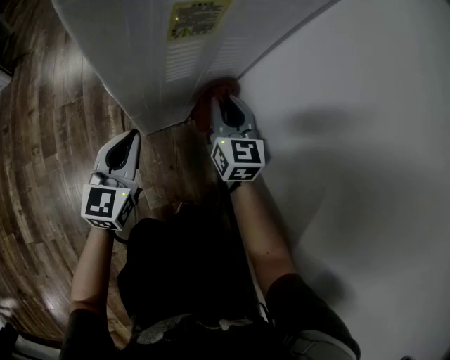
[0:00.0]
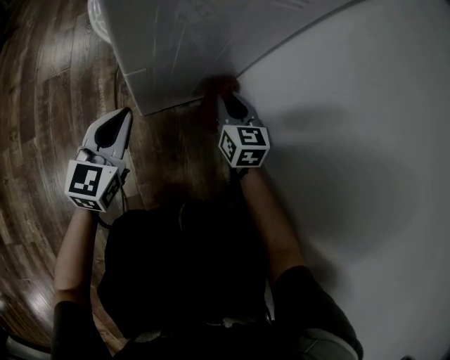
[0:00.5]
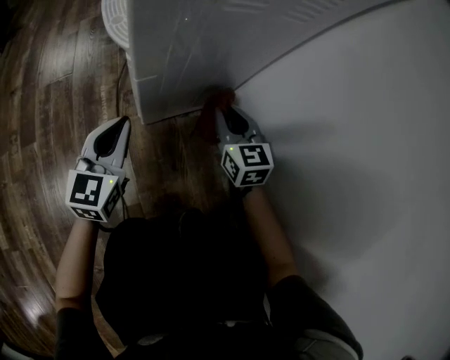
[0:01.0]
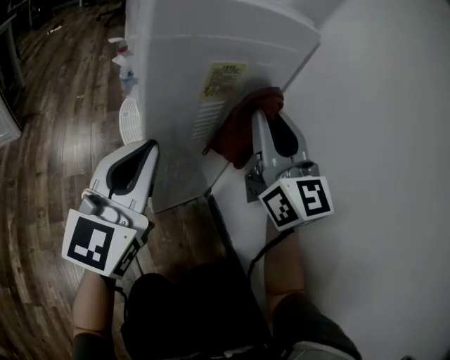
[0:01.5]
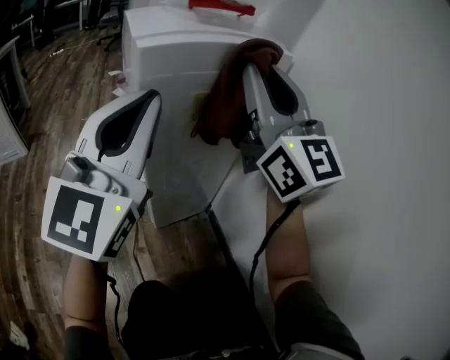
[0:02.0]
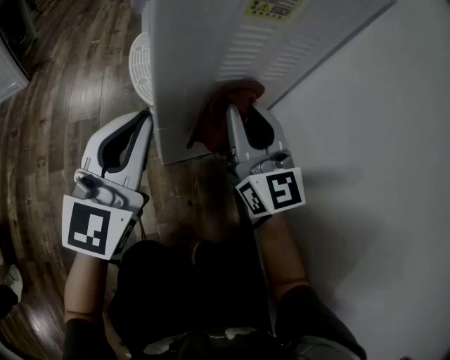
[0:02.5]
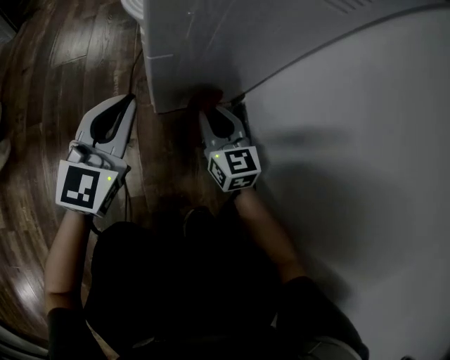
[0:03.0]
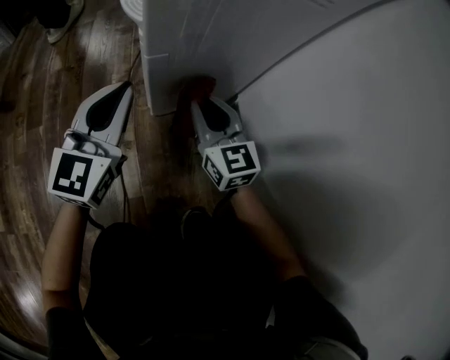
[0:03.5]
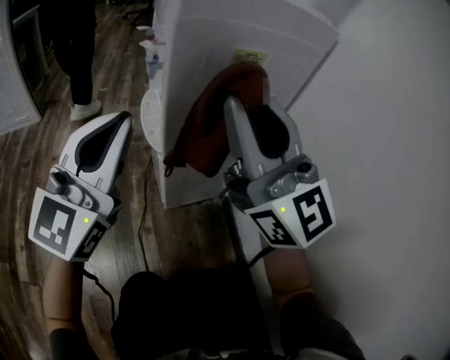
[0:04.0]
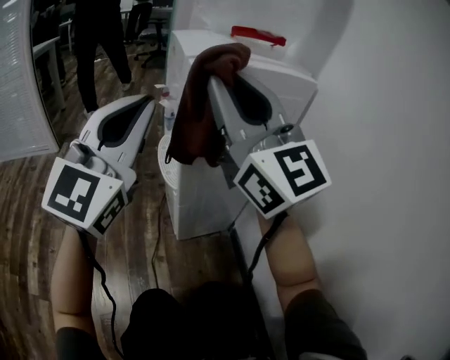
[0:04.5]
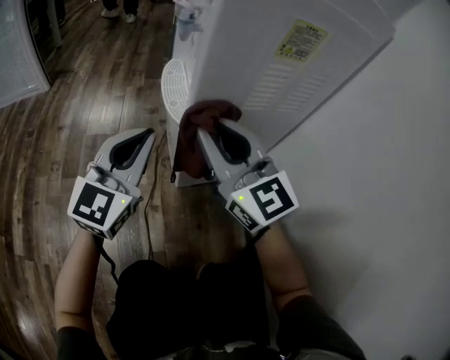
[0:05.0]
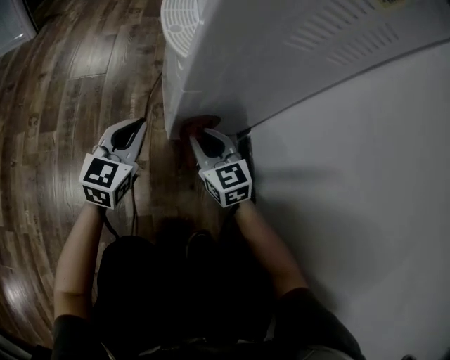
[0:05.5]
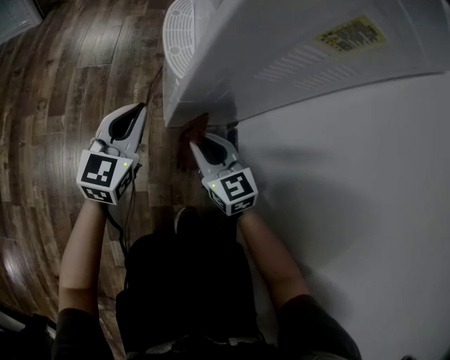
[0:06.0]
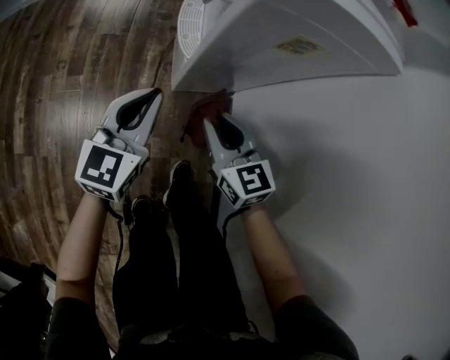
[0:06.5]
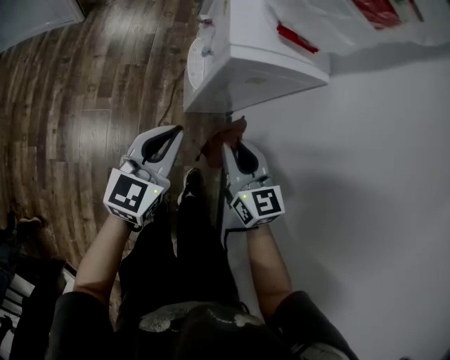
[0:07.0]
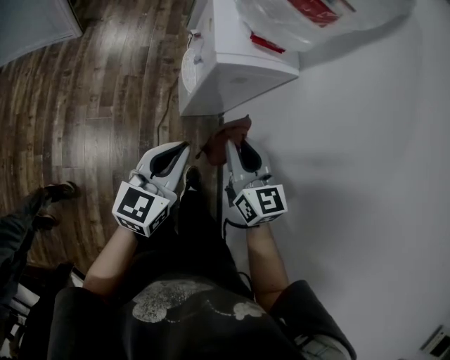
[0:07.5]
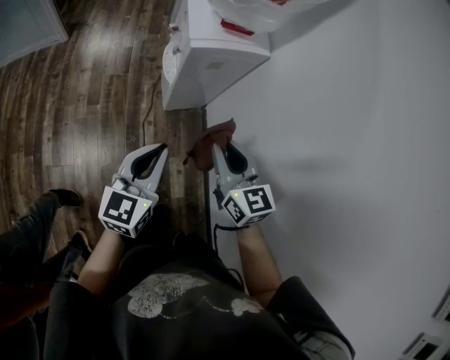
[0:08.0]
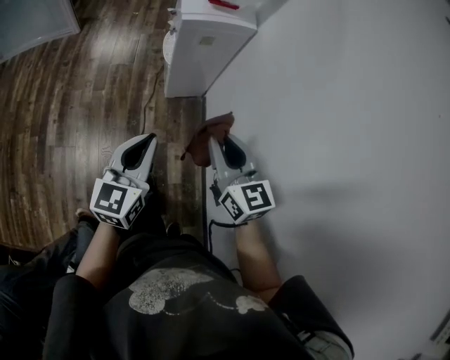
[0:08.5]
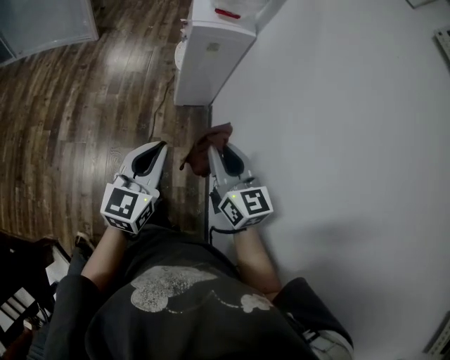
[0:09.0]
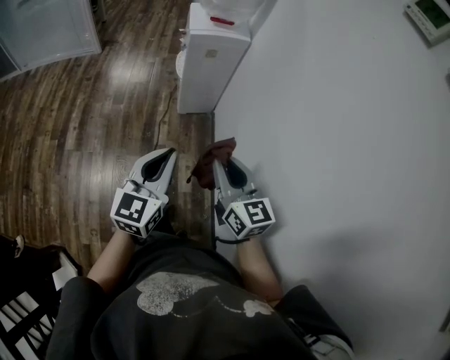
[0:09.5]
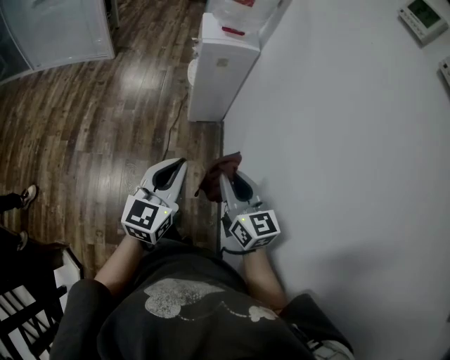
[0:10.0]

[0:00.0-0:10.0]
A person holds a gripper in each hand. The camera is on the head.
0:00.0 to 0:02.0: The two grippers go roughly 35 cm upward. The right gripper points its fingers some 40 degrees further upward. The left gripper tips its fingers upward by about 30 degrees.
0:02.0 to 0:04.0: The left gripper moves to the left, roughly 5 cm, and goes downward and returns, some 40 cm each way, while the right gripper is displaced backward and to the left by about 10 cm, and goes downward and returns, roughly 60 cm each way.
0:04.0 to 0:06.0: The right gripper goes up and down, about 60 cm each way, reversing 2 times, and angles its fingers downward, by roughly 50 degrees; the left gripper swings up and down, approximately 50 cm each way, with 2 reversals, and changes its angle by about 30 degrees.
0:06.0 to 0:08.0: The right gripper travels upward by roughly 50 cm; the left gripper goes roughly 50 cm upward and backward.
0:08.0 to 0:10.0: Both grippers move backward, about 30 cm.

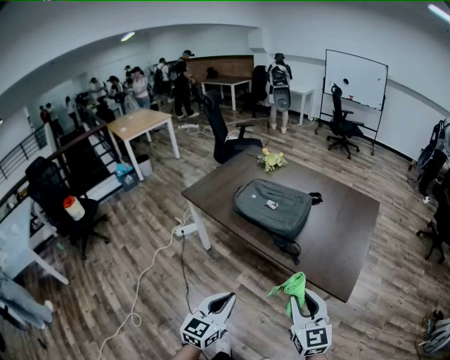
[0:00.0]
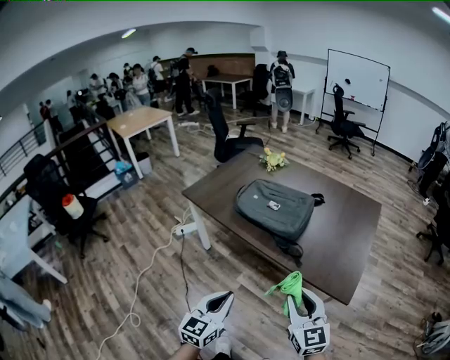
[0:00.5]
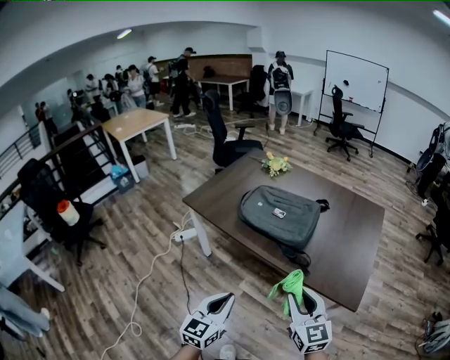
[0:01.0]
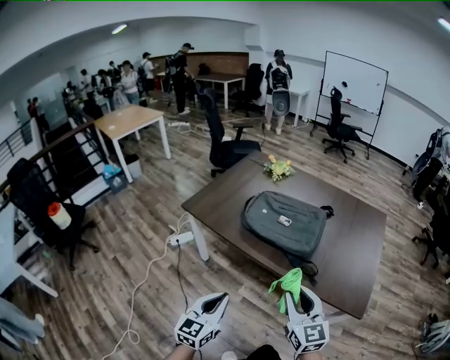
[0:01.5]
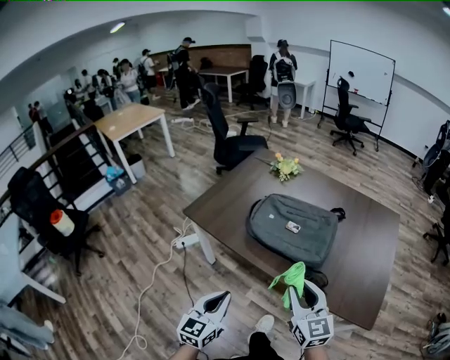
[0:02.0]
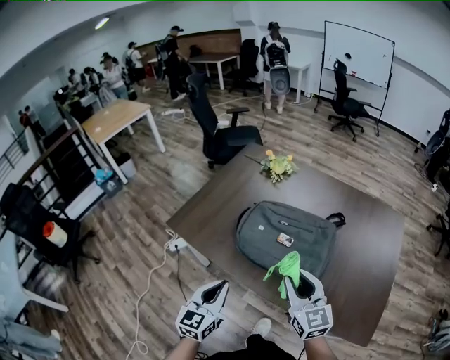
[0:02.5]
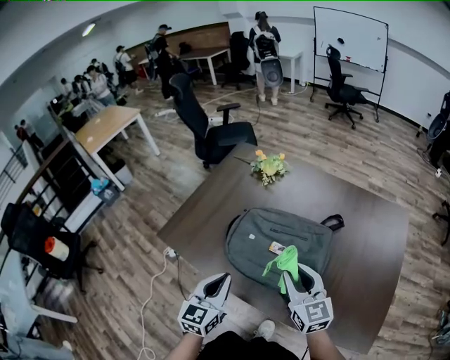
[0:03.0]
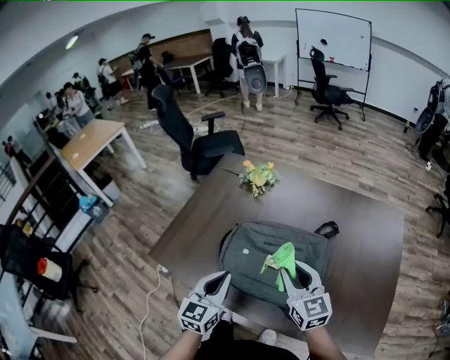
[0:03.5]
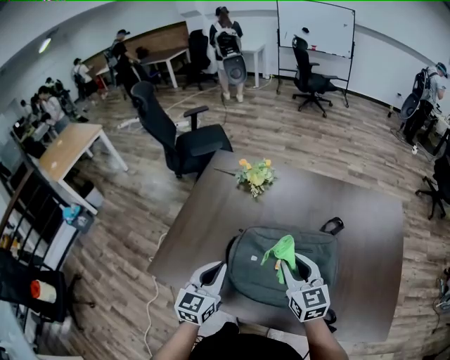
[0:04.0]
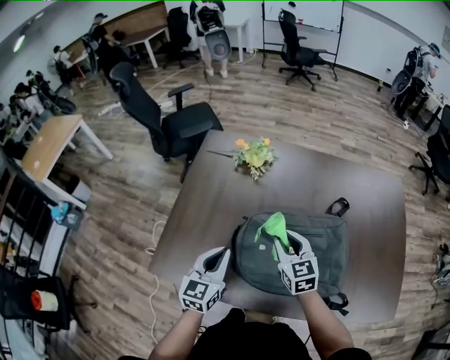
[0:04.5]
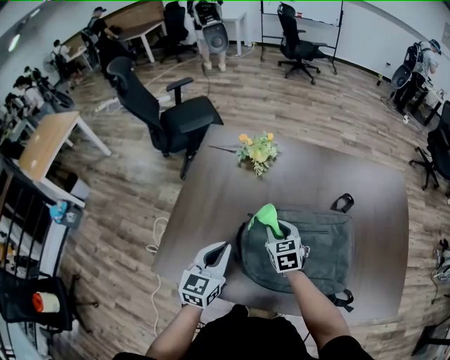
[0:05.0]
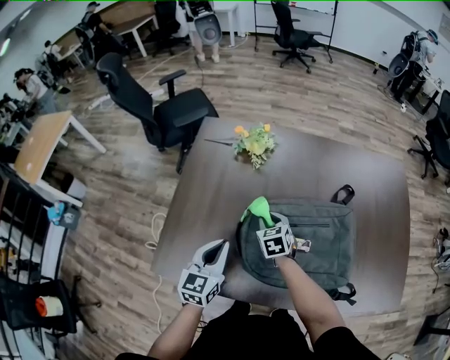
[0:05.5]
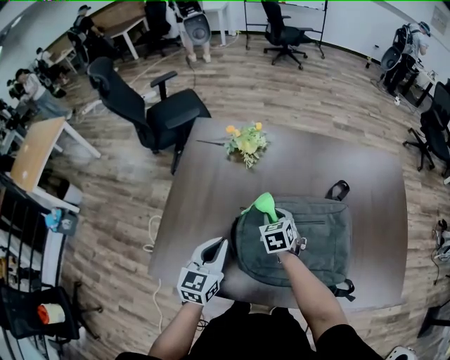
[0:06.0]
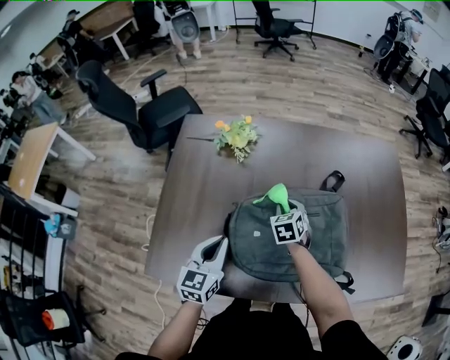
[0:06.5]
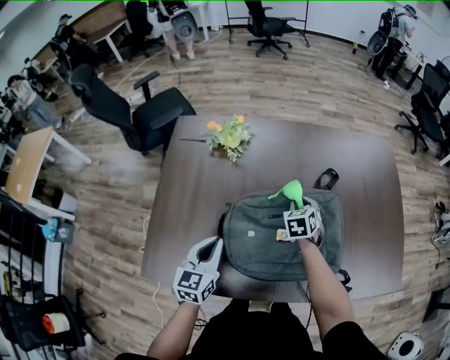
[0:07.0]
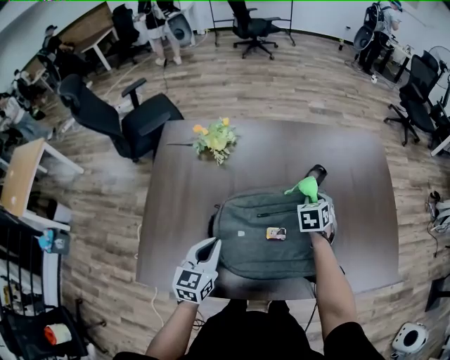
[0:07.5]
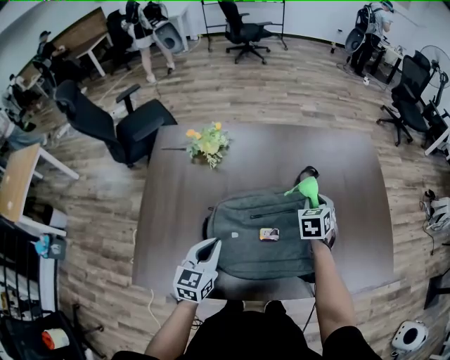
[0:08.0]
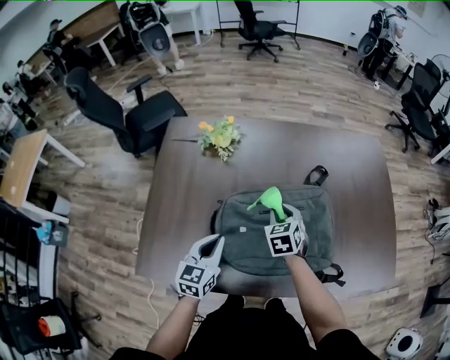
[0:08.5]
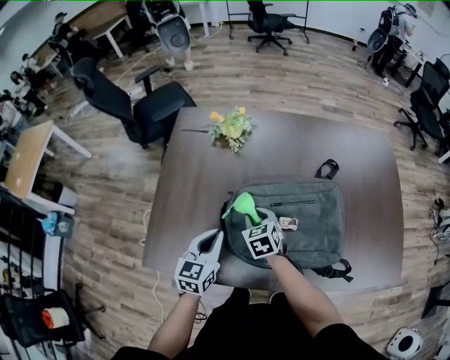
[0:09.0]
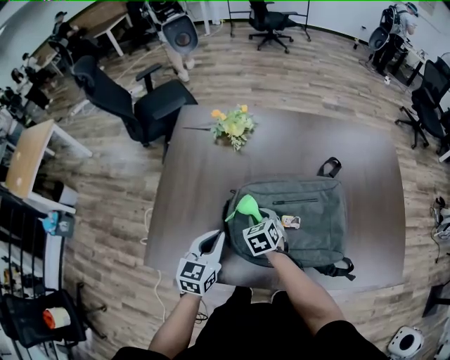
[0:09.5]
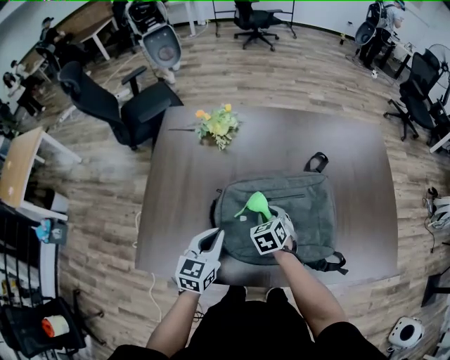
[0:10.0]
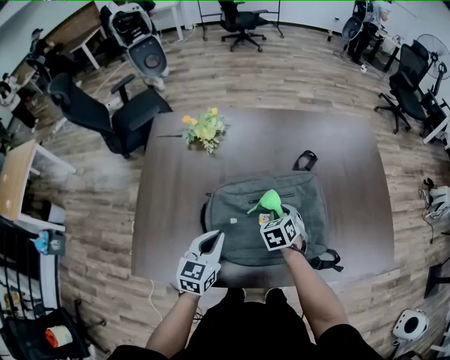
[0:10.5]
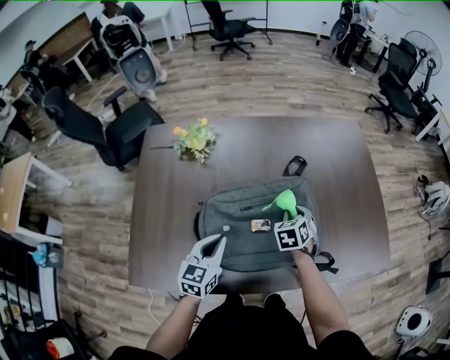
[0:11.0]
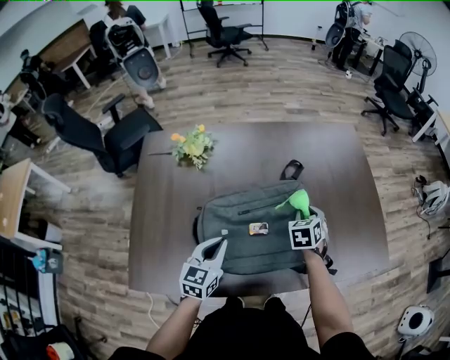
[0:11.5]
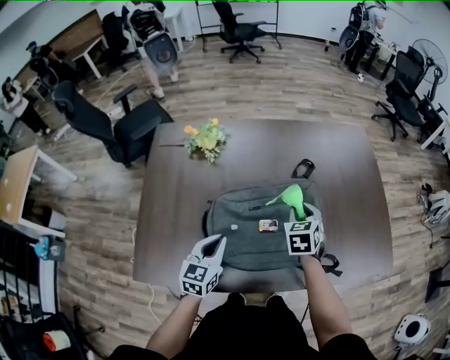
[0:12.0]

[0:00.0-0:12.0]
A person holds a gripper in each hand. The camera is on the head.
0:00.0 to 0:02.0: Both grippers travel together forward and to the left, some 25 cm.
0:02.0 to 0:04.0: The grippers both shift forward by some 35 cm.
0:04.0 to 0:06.0: The left gripper is displaced forward and downward by approximately 5 cm. The right gripper travels downward, forward and to the left by some 25 cm, and angles its fingers downward, by roughly 30 degrees.
0:06.0 to 0:08.0: The right gripper goes about 25 cm to the right, and swivels roughly 30 degrees; the left gripper goes approximately 5 cm to the right.
0:08.0 to 0:10.0: The right gripper moves to the left, backward and downward, some 25 cm, and swivels about 20 degrees.
0:10.0 to 0:12.0: The right gripper moves to the right, upward and forward, roughly 20 cm, and turns by roughly 20 degrees.

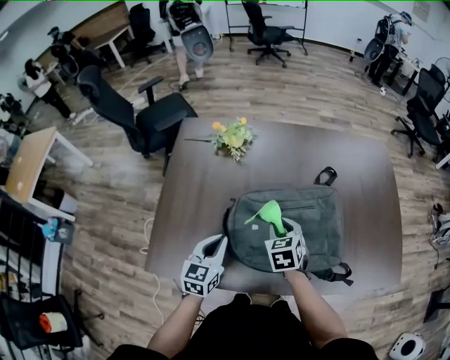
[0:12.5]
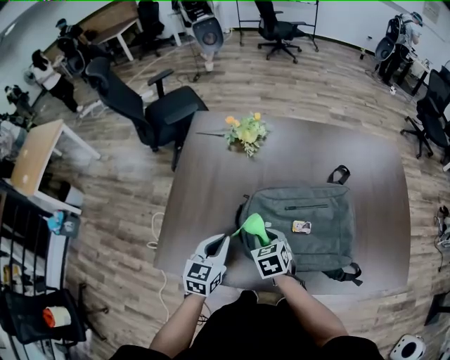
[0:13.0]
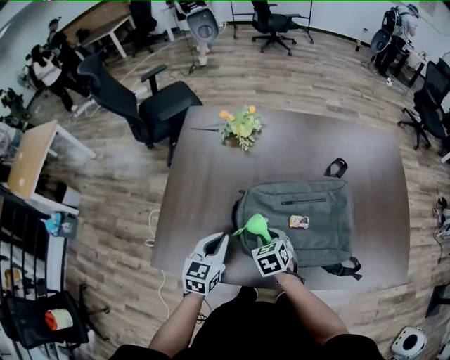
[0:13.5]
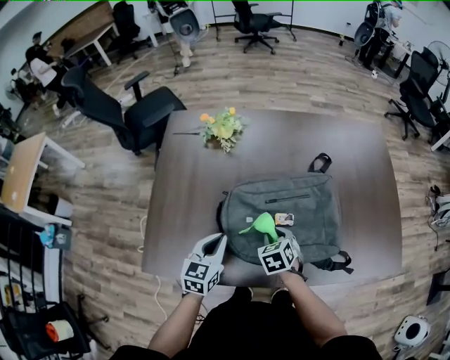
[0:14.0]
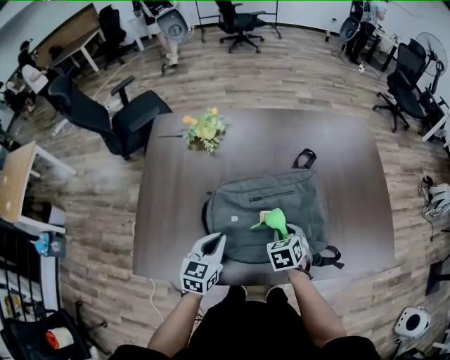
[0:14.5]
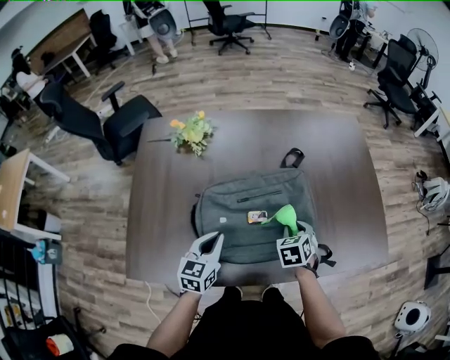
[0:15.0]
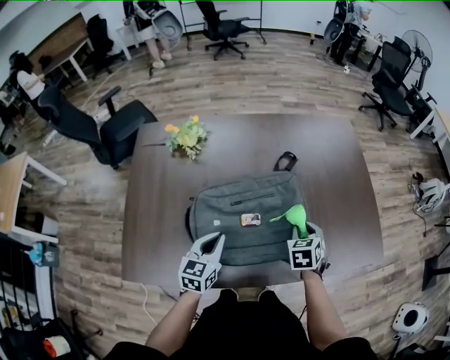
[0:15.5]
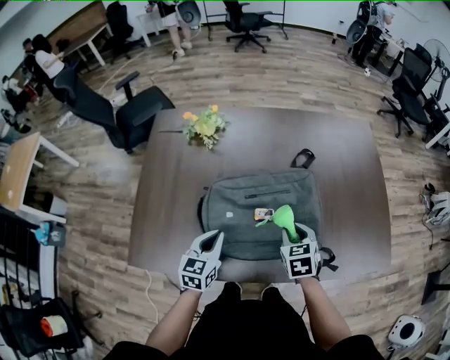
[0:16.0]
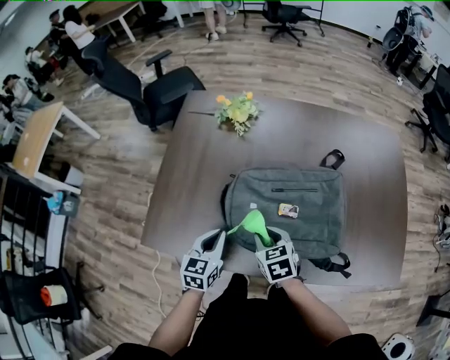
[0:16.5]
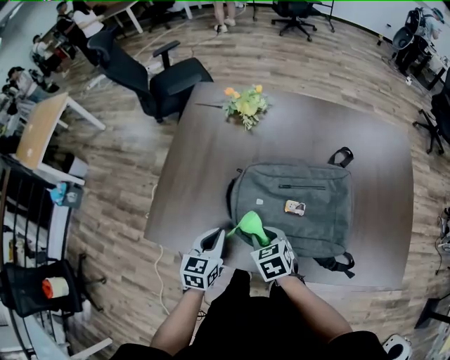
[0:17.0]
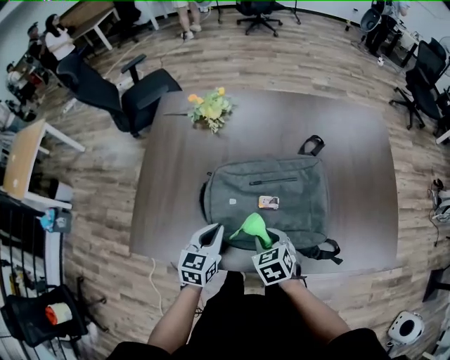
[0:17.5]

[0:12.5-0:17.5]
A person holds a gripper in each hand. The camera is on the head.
0:12.5 to 0:15.0: The right gripper shifts by roughly 20 cm. Meanwhile the left gripper changes place by approximately 10 cm.
0:15.0 to 0:17.5: The right gripper shifts by approximately 15 cm, and turns by approximately 30 degrees.
